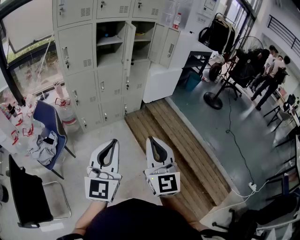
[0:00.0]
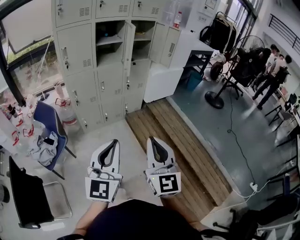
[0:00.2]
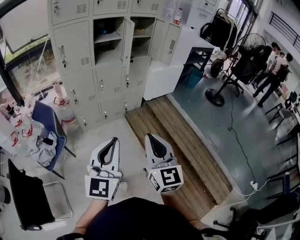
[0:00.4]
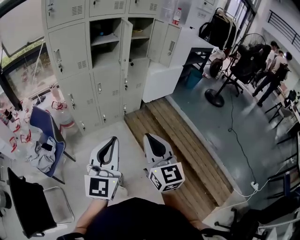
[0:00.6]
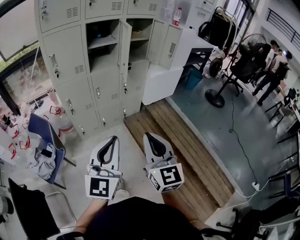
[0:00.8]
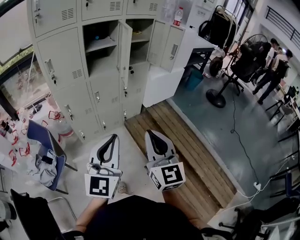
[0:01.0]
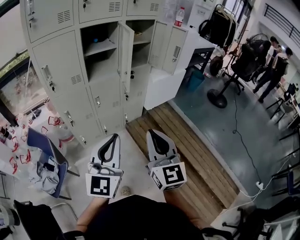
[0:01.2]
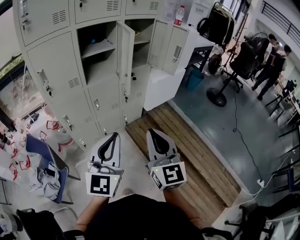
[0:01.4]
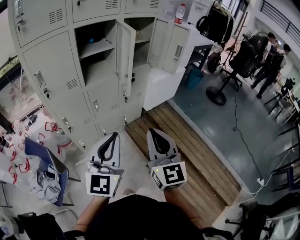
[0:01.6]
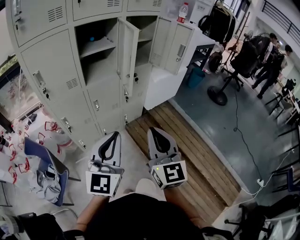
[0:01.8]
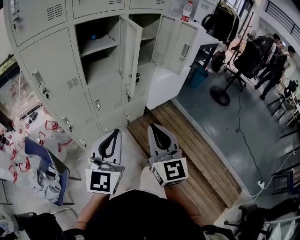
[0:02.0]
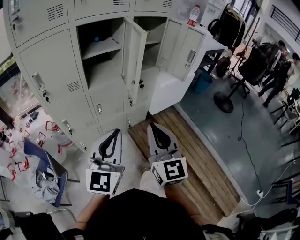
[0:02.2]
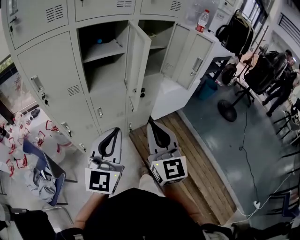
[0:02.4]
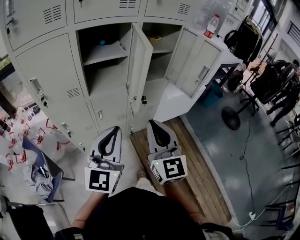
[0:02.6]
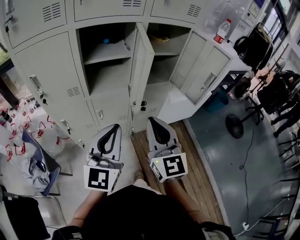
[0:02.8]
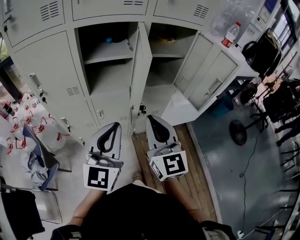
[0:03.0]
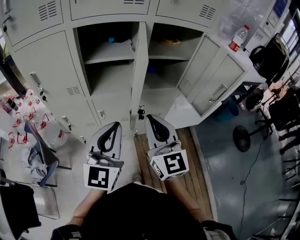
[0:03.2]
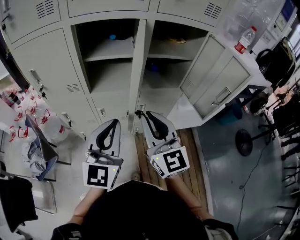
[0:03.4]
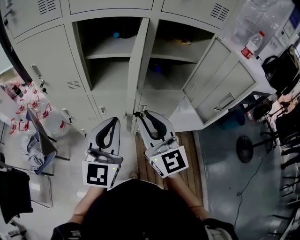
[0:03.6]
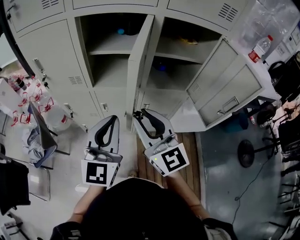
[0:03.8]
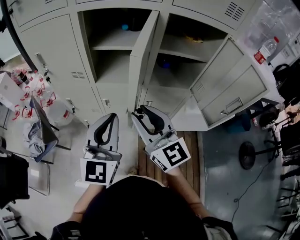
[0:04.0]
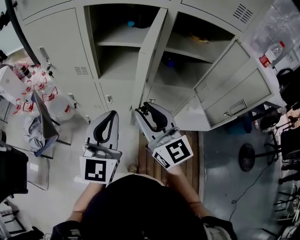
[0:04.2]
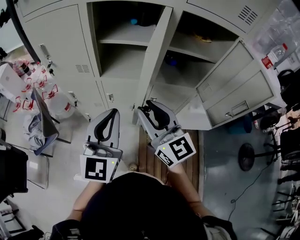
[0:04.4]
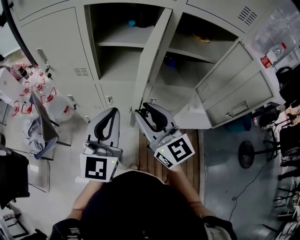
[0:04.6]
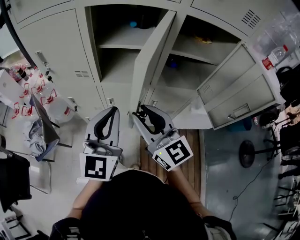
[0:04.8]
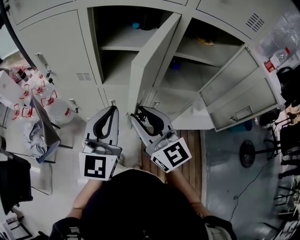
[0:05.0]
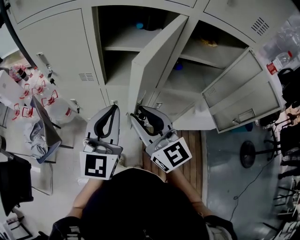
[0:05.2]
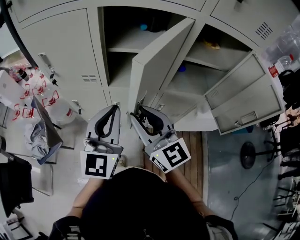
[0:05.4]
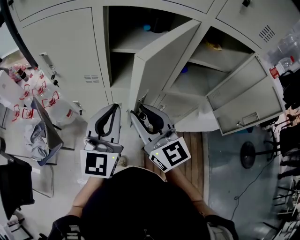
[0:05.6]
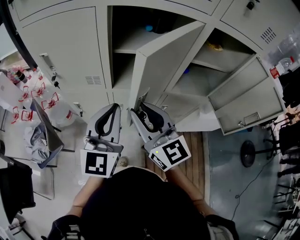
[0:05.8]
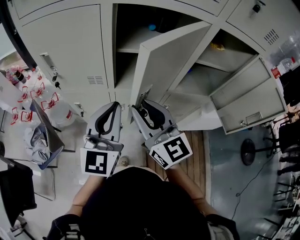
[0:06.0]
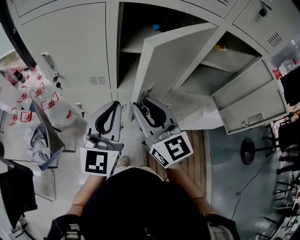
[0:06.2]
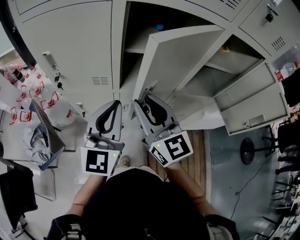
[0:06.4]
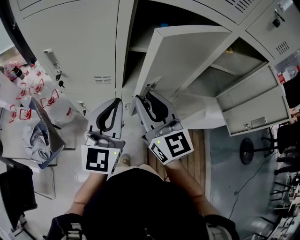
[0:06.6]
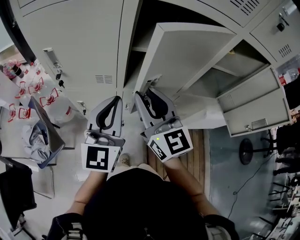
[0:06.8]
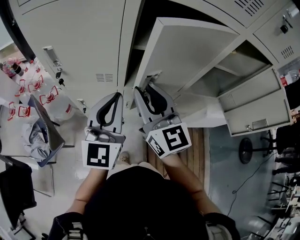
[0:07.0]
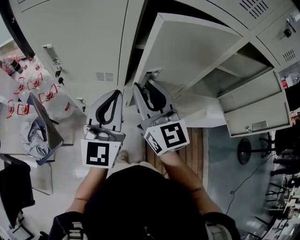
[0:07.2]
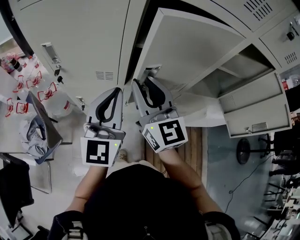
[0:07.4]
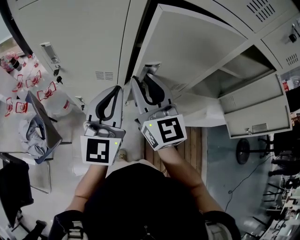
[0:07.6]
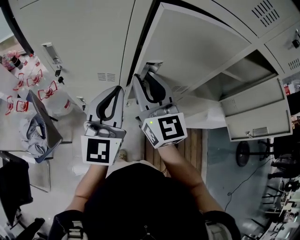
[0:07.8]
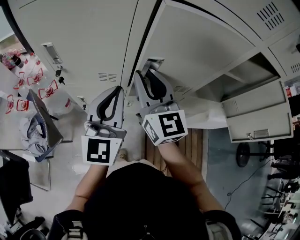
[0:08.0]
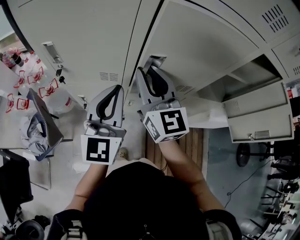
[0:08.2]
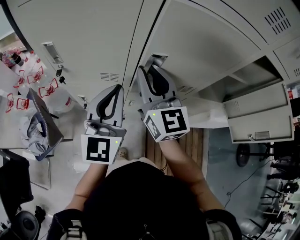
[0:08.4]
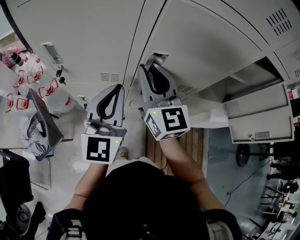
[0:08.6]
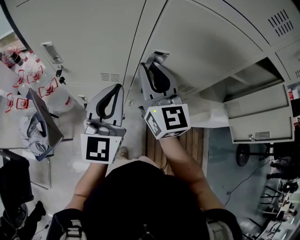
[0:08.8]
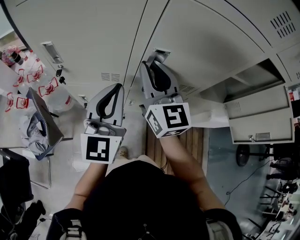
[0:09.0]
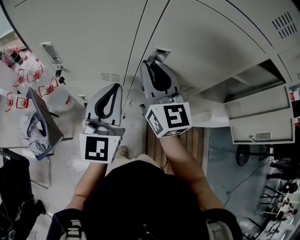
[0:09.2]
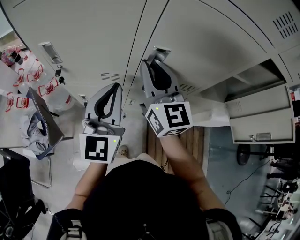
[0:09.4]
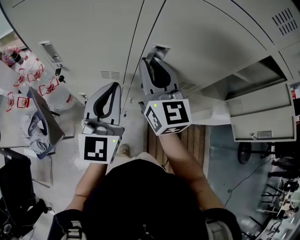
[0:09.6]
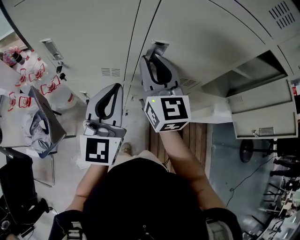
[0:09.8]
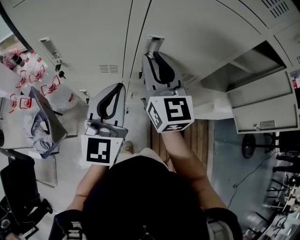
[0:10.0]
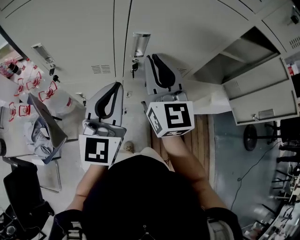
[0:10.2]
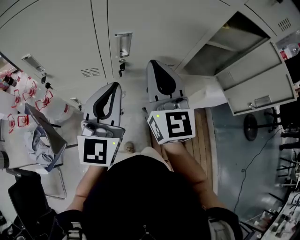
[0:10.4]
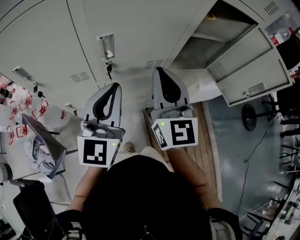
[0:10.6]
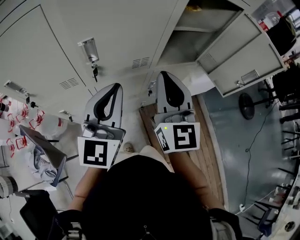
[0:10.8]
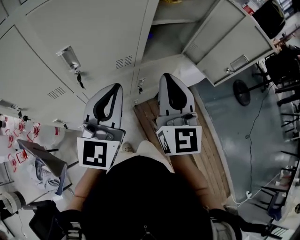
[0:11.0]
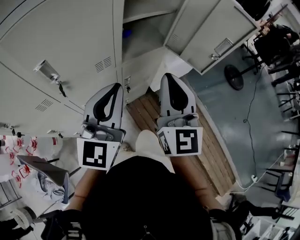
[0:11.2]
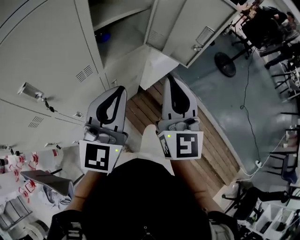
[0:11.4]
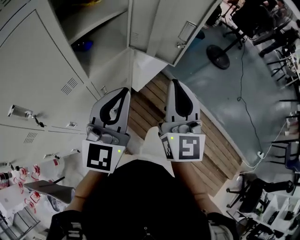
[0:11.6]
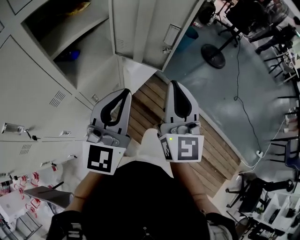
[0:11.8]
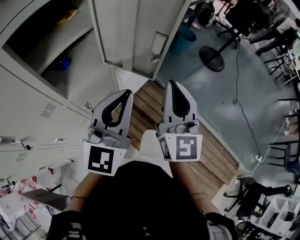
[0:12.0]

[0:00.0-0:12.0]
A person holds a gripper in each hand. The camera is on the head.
0:00.0 to 0:01.6: Both grippers move forward, some 30 cm.
0:01.6 to 0:03.0: Both grippers move forward, roughly 25 cm. The right gripper swivels some 20 degrees.
0:03.0 to 0:04.4: The right gripper shifts by about 10 cm, swivels approximately 30 degrees, and opens its fingers, while the left gripper changes place by some 5 cm.
0:04.4 to 0:06.0: The left gripper goes some 15 cm forward and to the left. The right gripper heads to the left and forward, covering about 15 cm.
0:06.0 to 0:07.6: The two grippers go about 10 cm forward.
0:07.6 to 0:09.0: The right gripper shifts approximately 5 cm forward.
0:09.0 to 0:10.4: The left gripper travels to the right by roughly 5 cm, while the right gripper heads to the right and backward, covering roughly 10 cm.
0:10.4 to 0:12.0: The two grippers travel together, some 50 cm. The right gripper swivels about 50 degrees; the left gripper swivels about 50 degrees.

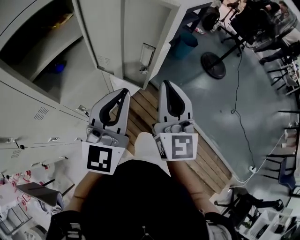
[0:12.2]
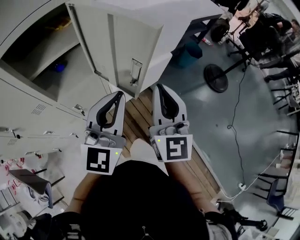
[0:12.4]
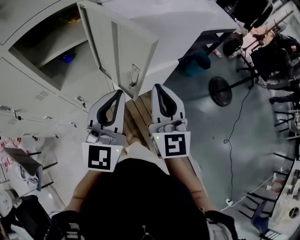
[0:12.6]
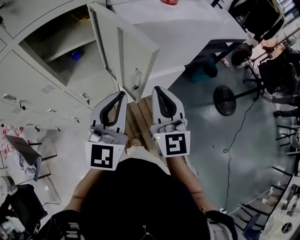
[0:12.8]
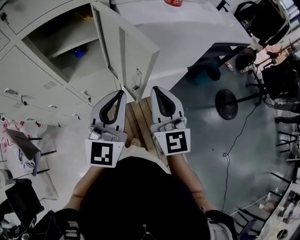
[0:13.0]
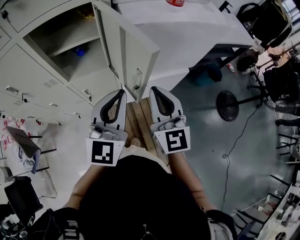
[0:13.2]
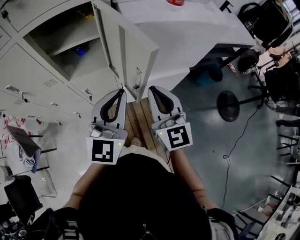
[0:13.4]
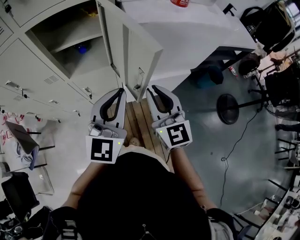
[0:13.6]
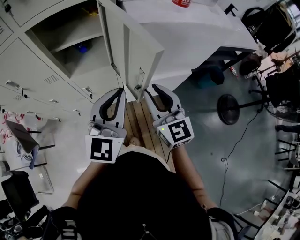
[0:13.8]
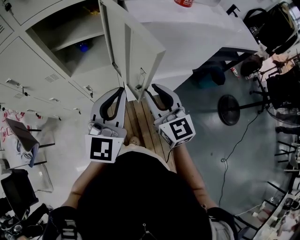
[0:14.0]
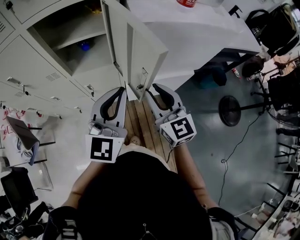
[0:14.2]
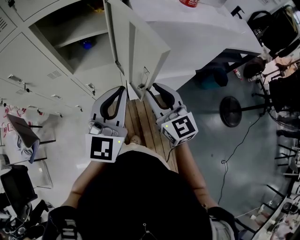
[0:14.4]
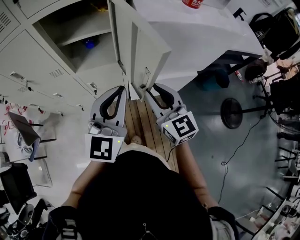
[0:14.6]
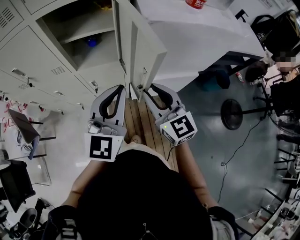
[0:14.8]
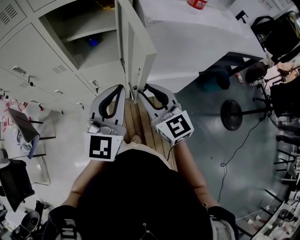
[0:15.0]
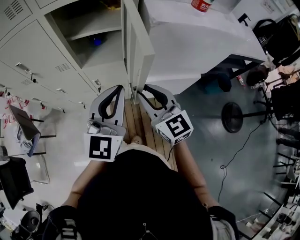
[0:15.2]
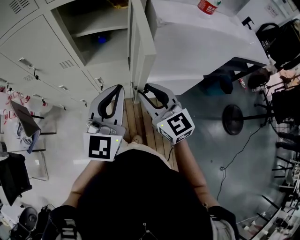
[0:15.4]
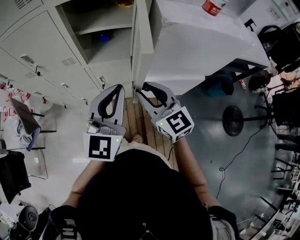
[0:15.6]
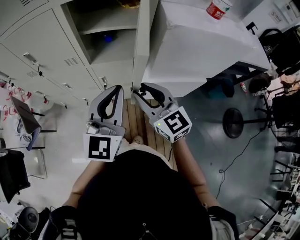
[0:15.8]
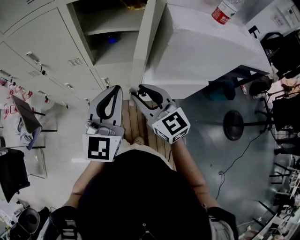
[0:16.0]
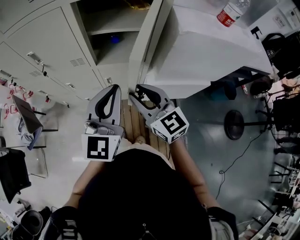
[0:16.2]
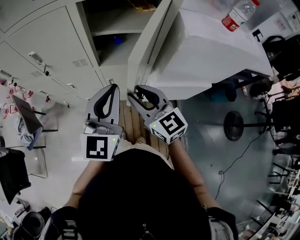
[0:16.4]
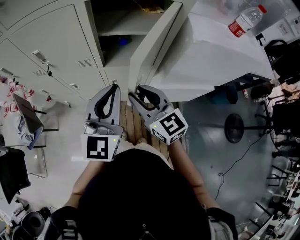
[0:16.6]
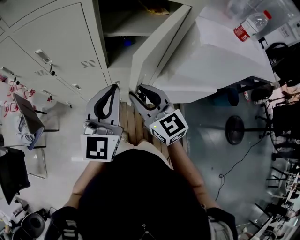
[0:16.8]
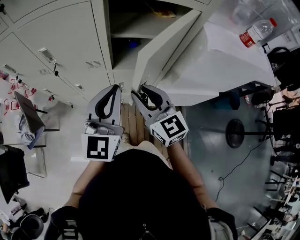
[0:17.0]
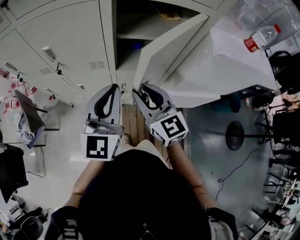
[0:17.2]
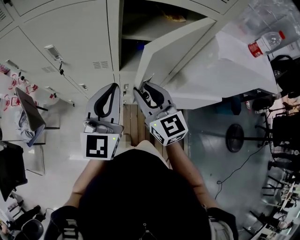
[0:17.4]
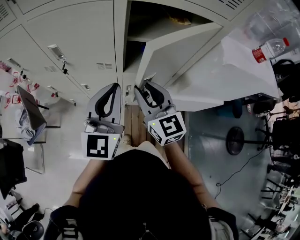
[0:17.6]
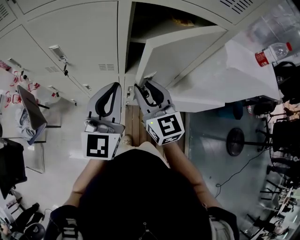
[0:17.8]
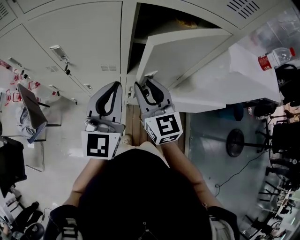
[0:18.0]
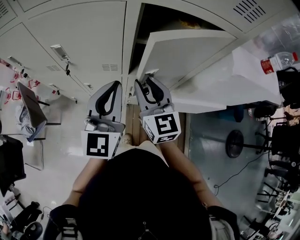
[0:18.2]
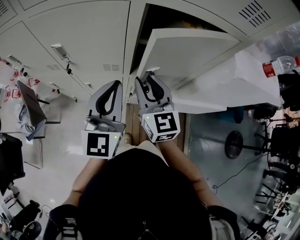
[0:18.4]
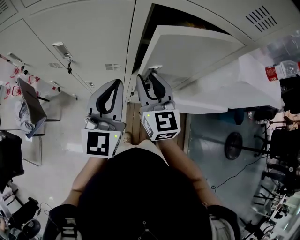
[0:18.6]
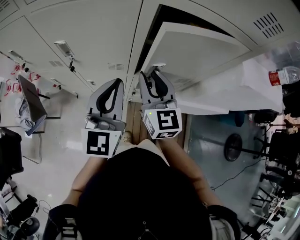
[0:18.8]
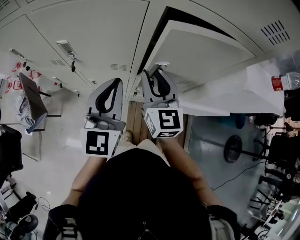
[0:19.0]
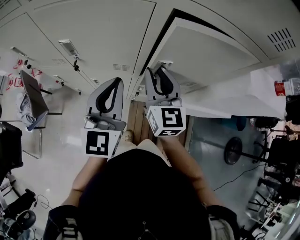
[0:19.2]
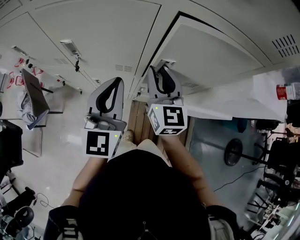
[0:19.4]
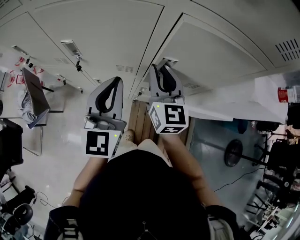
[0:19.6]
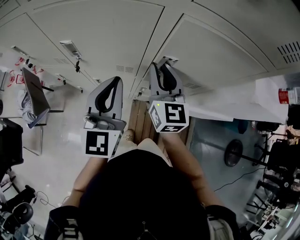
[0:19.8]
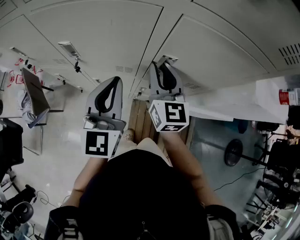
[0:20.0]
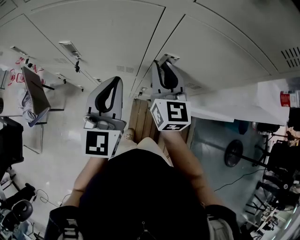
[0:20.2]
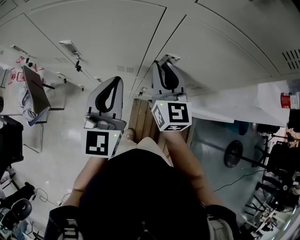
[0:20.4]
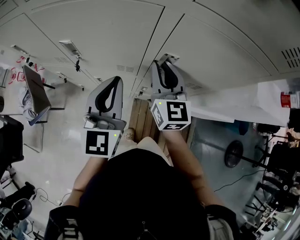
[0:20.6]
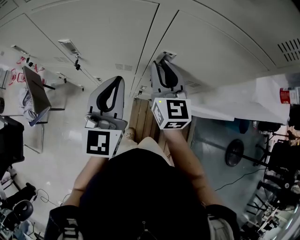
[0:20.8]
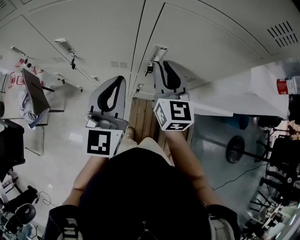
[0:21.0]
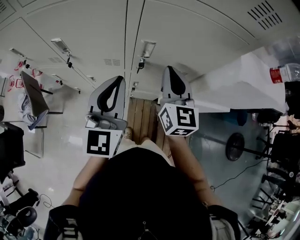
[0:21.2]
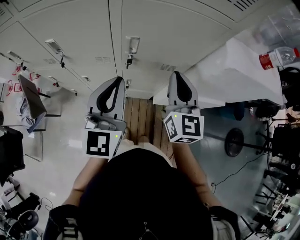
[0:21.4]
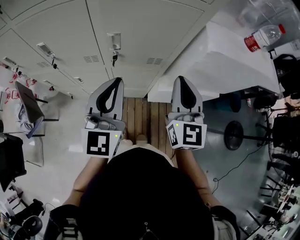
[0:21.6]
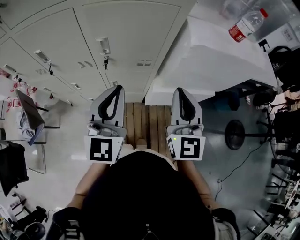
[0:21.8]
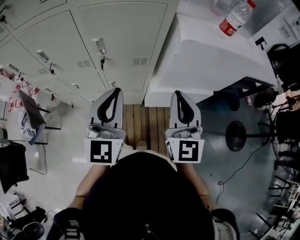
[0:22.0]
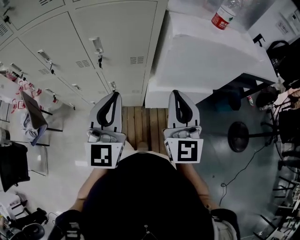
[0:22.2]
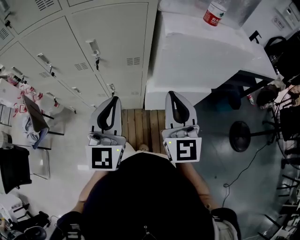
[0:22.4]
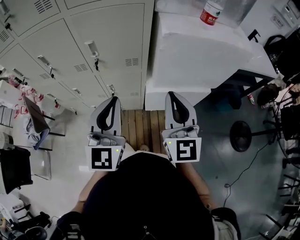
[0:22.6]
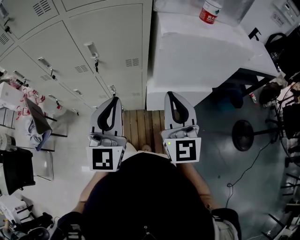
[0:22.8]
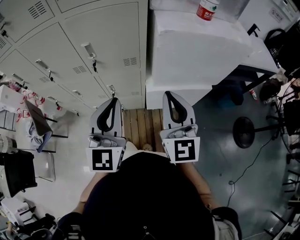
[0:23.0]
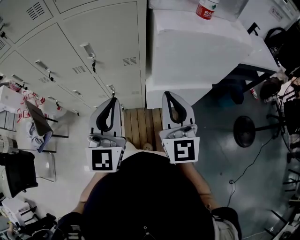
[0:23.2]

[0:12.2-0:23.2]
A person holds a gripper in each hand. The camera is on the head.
0:12.2 to 0:13.8: The right gripper changes place by roughly 10 cm, changes its angle by some 50 degrees, and opens its fingers; the left gripper moves about 5 cm, and rotates some 30 degrees.
0:13.8 to 0:15.4: Both grippers travel together to the left, roughly 5 cm.
0:15.4 to 0:17.0: The grippers both shift to the left and forward by some 20 cm.
0:17.0 to 0:18.4: Both grippers move forward and to the left, about 10 cm.
0:18.4 to 0:20.0: The right gripper goes about 10 cm forward; the left gripper moves roughly 5 cm.
0:20.0 to 0:21.6: The right gripper shifts roughly 25 cm to the right and backward. The left gripper moves to the right and backward, roughly 20 cm.
0:21.6 to 0:23.2: The left gripper moves to the right and backward, roughly 15 cm; the right gripper travels backward and to the right by roughly 15 cm.

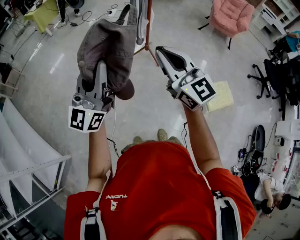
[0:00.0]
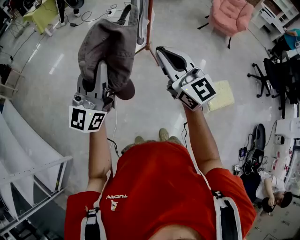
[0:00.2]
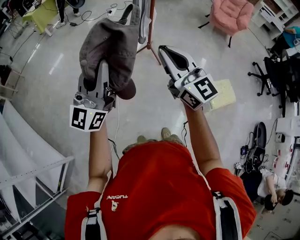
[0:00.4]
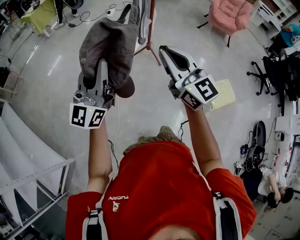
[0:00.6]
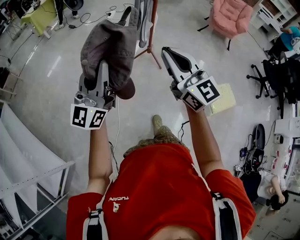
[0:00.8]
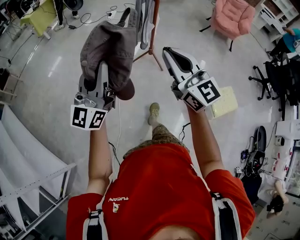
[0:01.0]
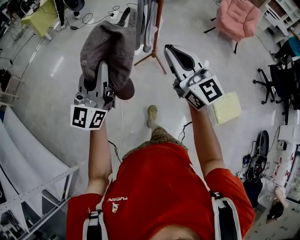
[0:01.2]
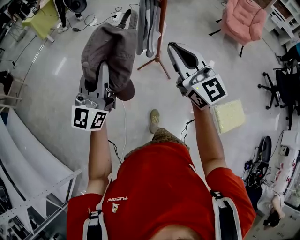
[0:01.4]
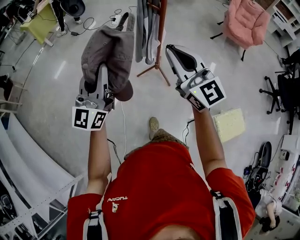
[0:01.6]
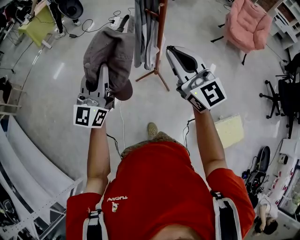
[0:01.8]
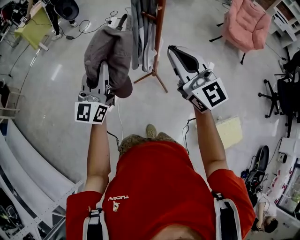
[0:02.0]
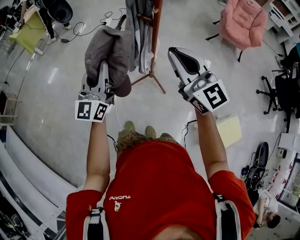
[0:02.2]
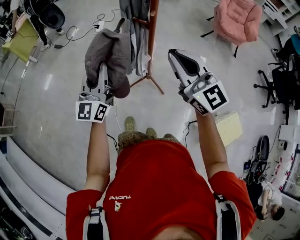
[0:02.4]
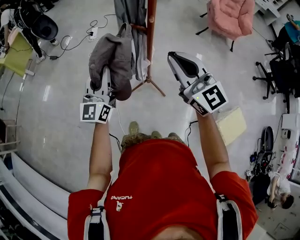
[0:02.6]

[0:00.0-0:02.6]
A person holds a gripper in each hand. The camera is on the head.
0:00.0 to 0:01.2: Both grippers move forward, about 15 cm.
0:01.2 to 0:02.6: The two grippers go some 40 cm forward.
